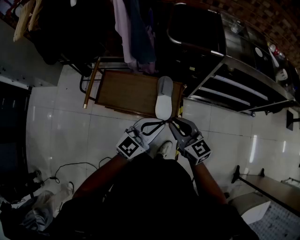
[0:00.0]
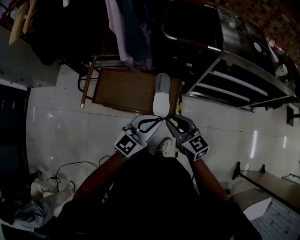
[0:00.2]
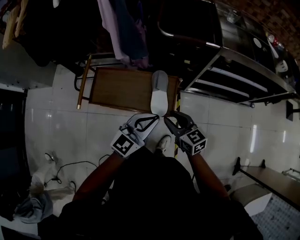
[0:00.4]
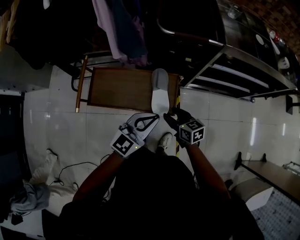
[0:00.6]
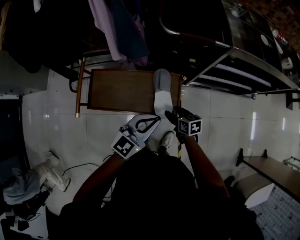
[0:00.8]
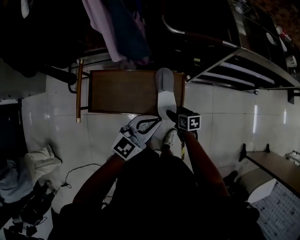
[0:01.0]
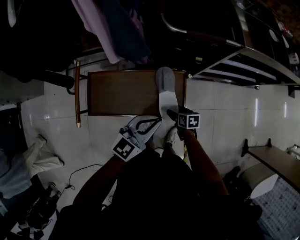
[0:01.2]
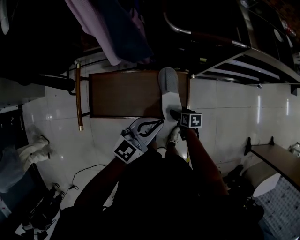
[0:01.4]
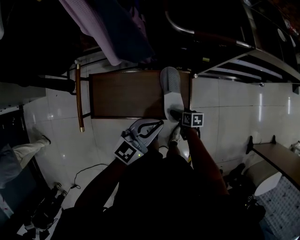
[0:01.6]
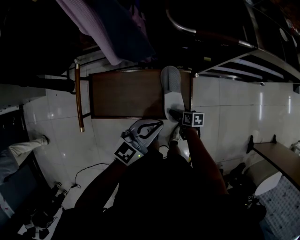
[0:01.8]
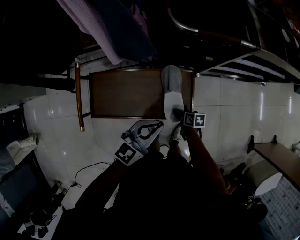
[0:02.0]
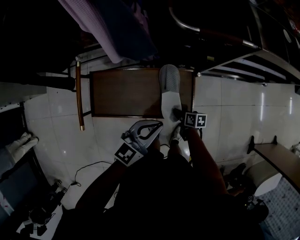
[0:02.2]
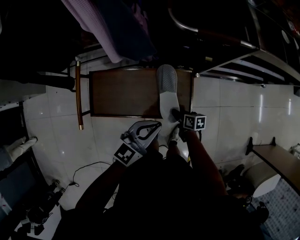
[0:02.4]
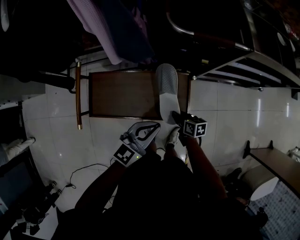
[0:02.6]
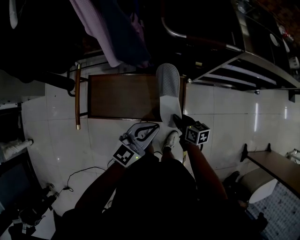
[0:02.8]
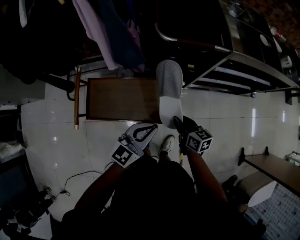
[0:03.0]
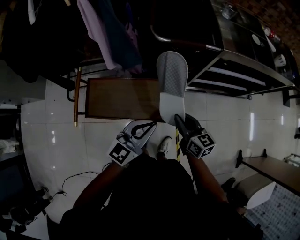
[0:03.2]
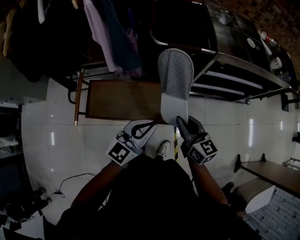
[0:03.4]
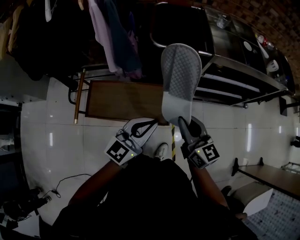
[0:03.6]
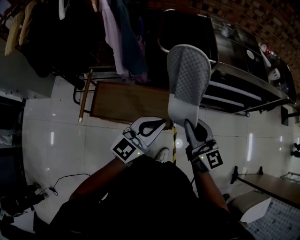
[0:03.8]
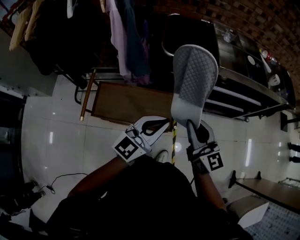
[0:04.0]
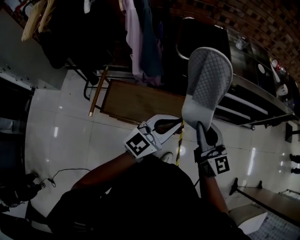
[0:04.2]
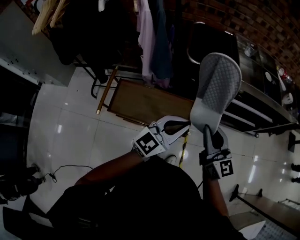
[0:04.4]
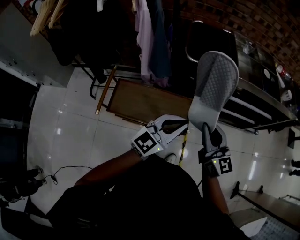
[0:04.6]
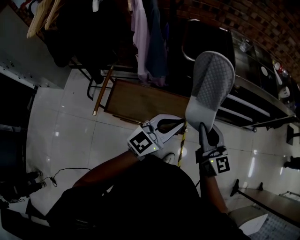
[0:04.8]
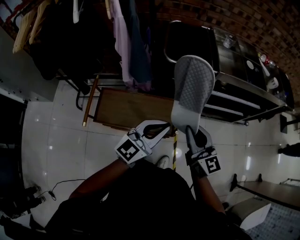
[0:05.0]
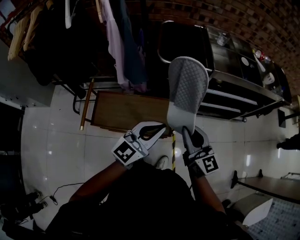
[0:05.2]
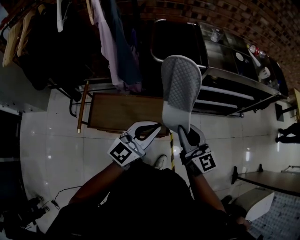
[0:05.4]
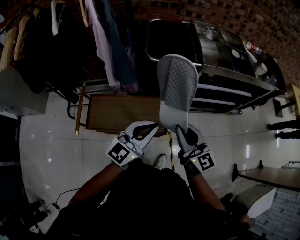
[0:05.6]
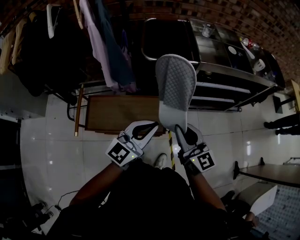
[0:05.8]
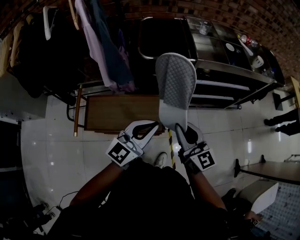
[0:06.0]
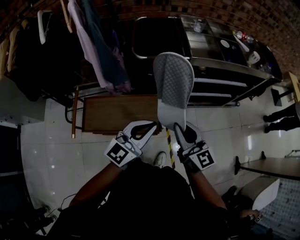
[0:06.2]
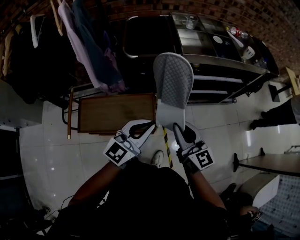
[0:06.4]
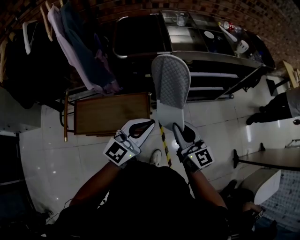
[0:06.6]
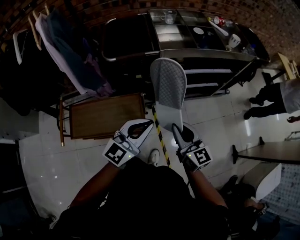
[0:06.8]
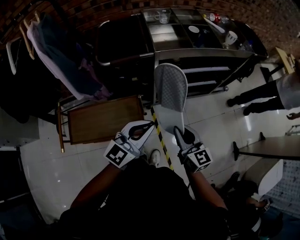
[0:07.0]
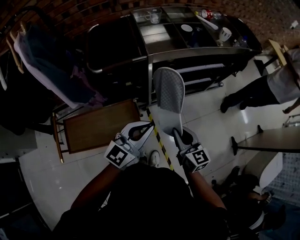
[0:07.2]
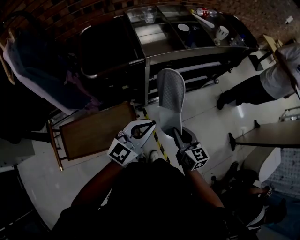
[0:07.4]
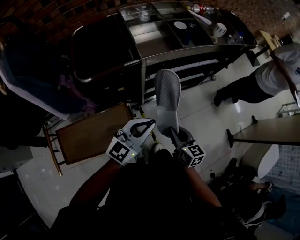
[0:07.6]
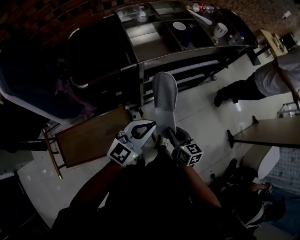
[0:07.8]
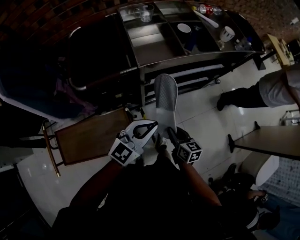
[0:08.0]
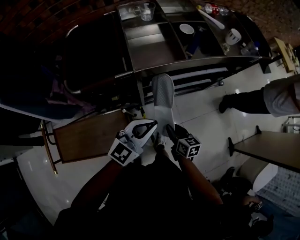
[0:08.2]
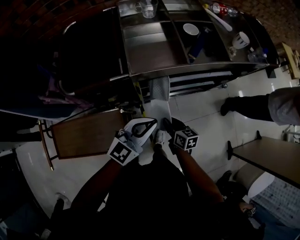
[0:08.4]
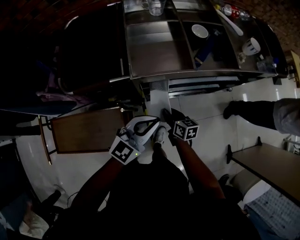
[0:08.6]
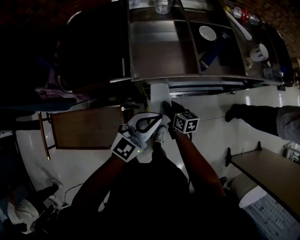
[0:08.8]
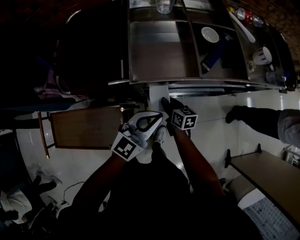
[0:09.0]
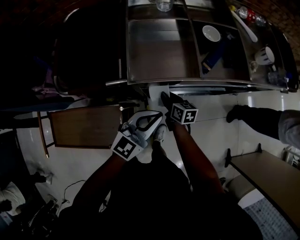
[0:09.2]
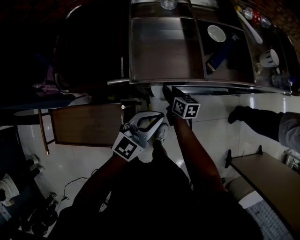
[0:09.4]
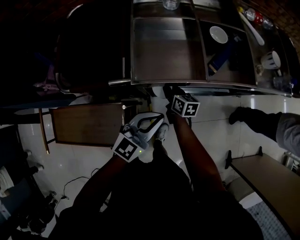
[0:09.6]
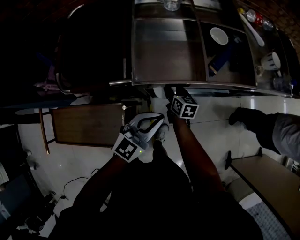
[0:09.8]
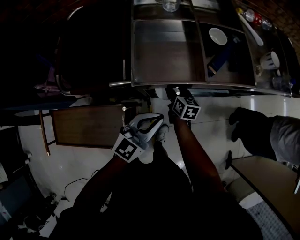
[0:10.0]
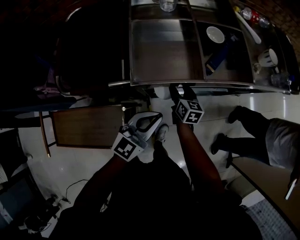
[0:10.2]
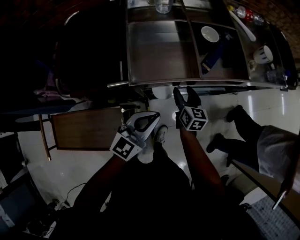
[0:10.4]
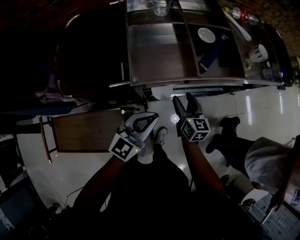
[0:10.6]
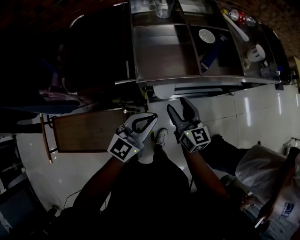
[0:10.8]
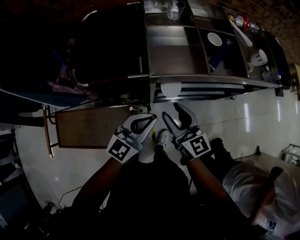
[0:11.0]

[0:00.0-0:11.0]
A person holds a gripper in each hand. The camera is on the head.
0:00.0 to 0:01.6: The right gripper goes about 40 cm downward, points its fingers some 40 degrees further downward, and opens its fingers; the left gripper is displaced forward, downward and to the left by about 20 cm.
0:01.6 to 0:03.2: The left gripper is displaced upward by about 10 cm. The right gripper shifts roughly 30 cm upward, tilts its fingers approximately 30 degrees upward, and closes its fingers.
0:03.2 to 0:04.8: The right gripper heads upward, covering some 20 cm, and rotates approximately 30 degrees; the left gripper heads upward, covering about 10 cm.
0:04.8 to 0:06.2: The right gripper moves to the right, approximately 5 cm.
0:06.2 to 0:07.8: The left gripper moves forward, to the right and downward, some 20 cm. The right gripper moves downward, to the right and forward, approximately 30 cm, and changes its angle by approximately 30 degrees.
0:07.8 to 0:09.4: The right gripper shifts some 35 cm forward and downward, and turns by about 20 degrees. The left gripper shifts roughly 20 cm forward and downward.
0:09.4 to 0:11.0: The right gripper moves upward and backward, roughly 25 cm, rotates some 40 degrees, and opens up; the left gripper shifts approximately 10 cm to the left and backward.

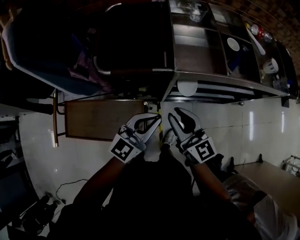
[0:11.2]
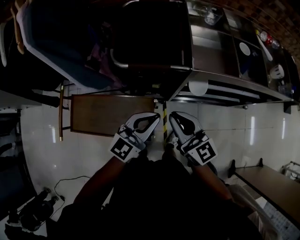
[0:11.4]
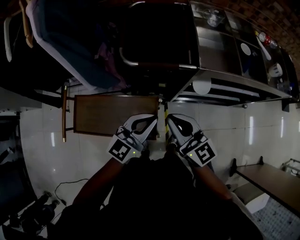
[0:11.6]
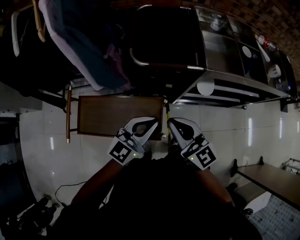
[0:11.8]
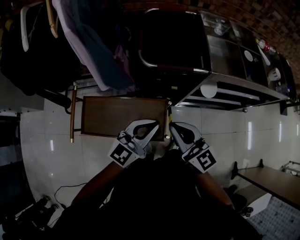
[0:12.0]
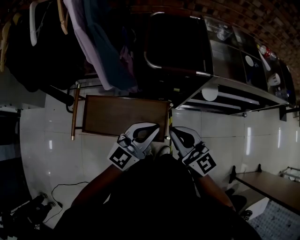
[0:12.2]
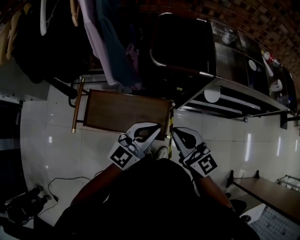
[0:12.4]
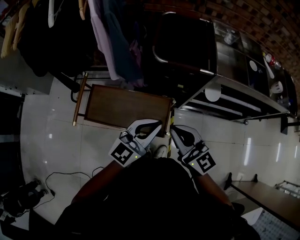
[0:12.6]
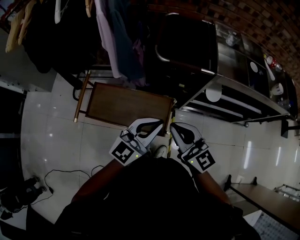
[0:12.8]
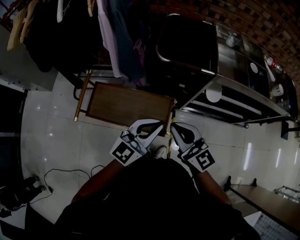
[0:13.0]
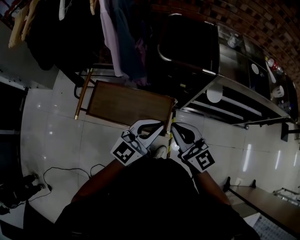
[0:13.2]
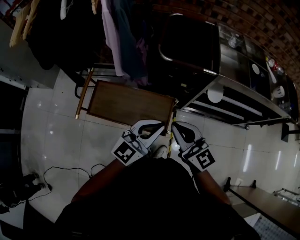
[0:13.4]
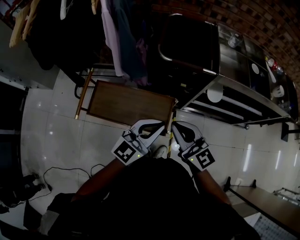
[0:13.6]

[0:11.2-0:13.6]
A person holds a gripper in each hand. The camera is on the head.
0:11.2 to 0:12.4: The two grippers go approximately 20 cm to the left and backward.
0:12.4 to 0:13.6: The grippers stay close to where they were, moving slightly.

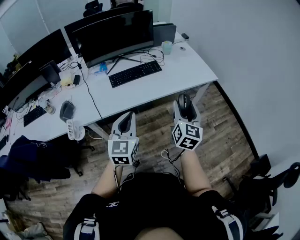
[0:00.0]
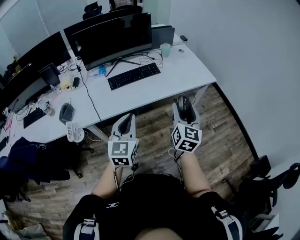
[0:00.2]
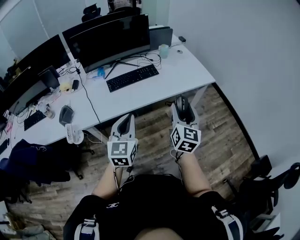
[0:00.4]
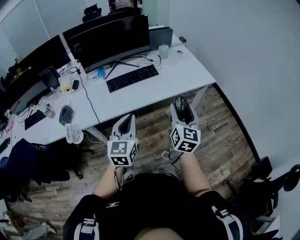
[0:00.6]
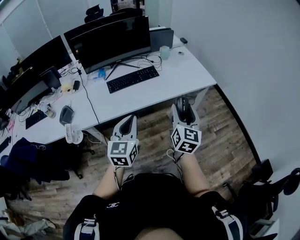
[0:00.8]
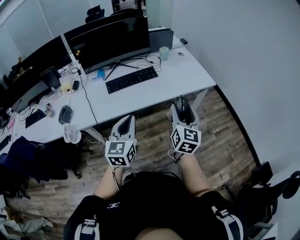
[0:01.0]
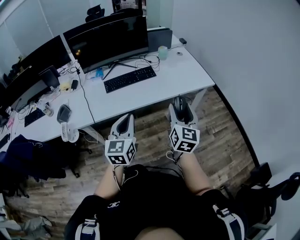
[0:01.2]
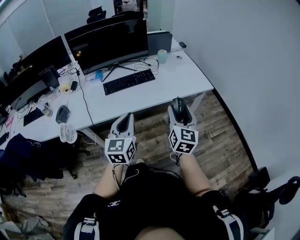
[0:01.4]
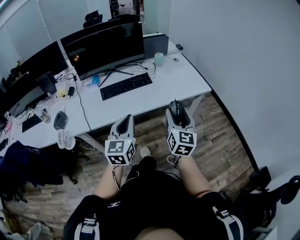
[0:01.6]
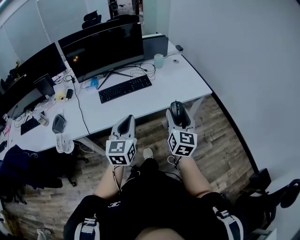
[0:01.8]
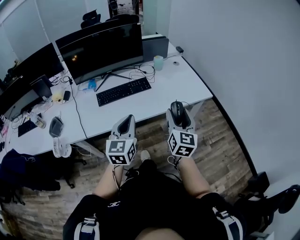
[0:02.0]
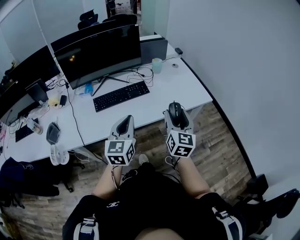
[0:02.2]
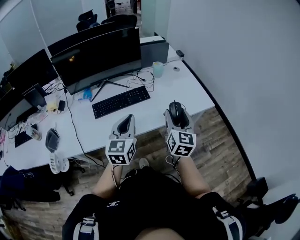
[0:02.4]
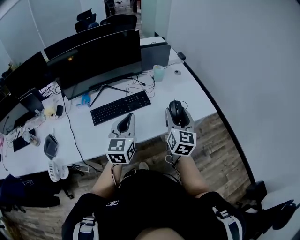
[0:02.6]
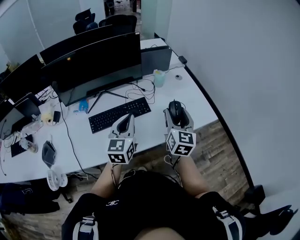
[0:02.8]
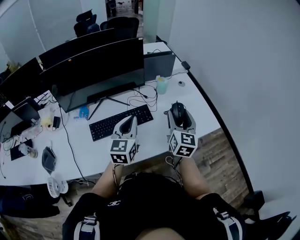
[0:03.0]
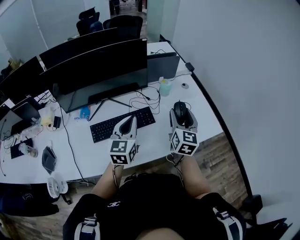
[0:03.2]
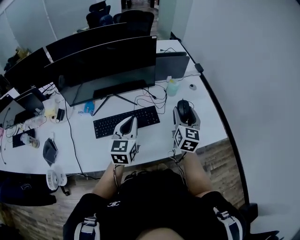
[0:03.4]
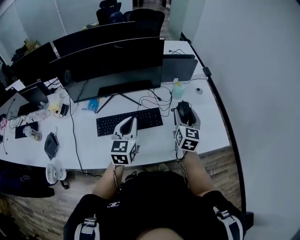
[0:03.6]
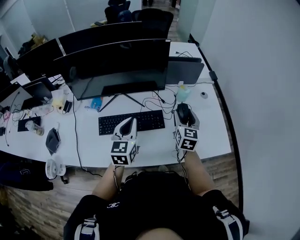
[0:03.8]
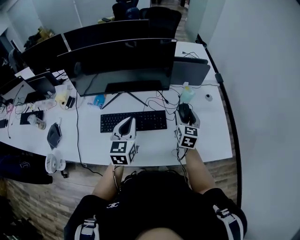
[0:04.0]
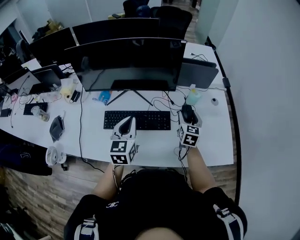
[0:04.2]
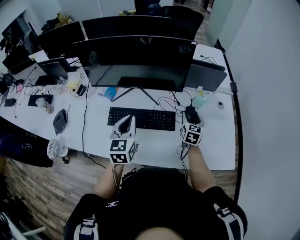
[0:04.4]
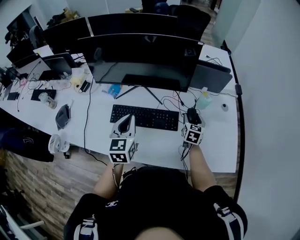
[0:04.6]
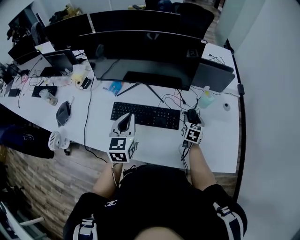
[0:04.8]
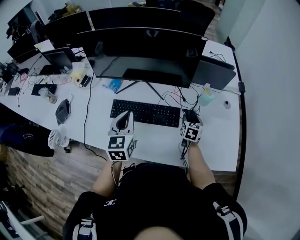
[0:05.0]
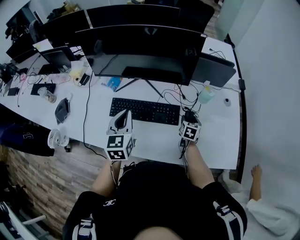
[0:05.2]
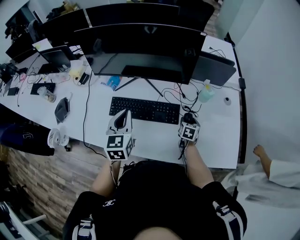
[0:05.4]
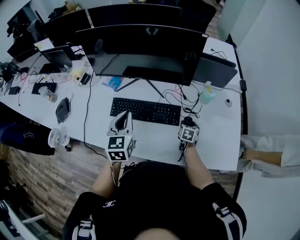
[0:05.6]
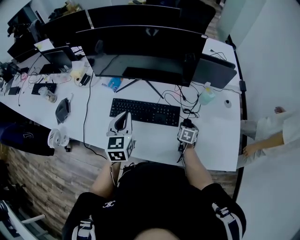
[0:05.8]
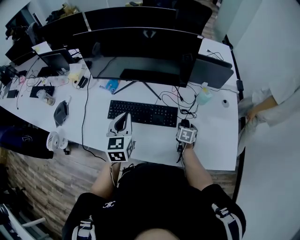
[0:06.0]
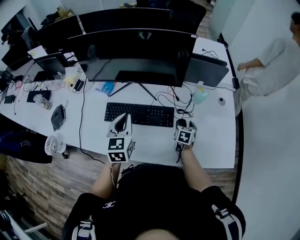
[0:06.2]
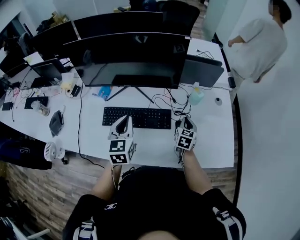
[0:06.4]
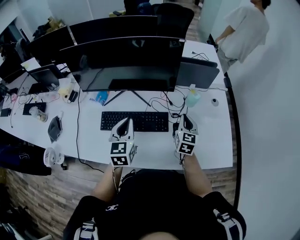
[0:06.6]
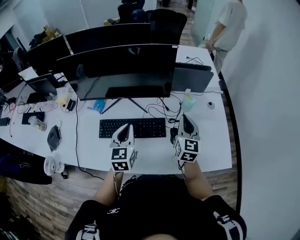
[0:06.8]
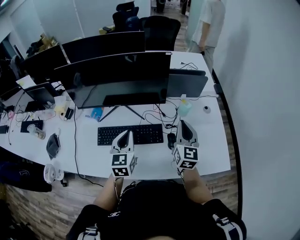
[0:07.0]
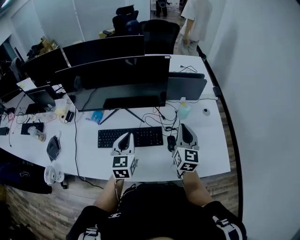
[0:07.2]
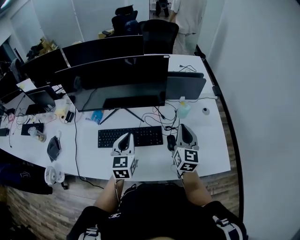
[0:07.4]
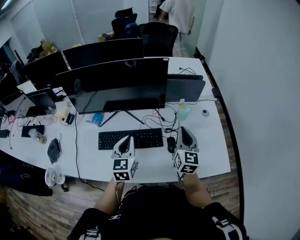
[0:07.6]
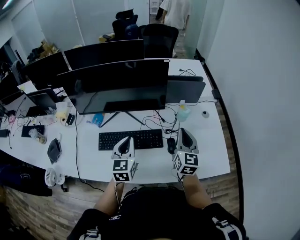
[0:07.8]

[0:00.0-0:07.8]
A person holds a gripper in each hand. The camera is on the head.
0:00.0 to 0:01.6: The right gripper moves to the right, about 10 cm. Meanwhile the left gripper travels to the right and forward by about 10 cm.
0:01.6 to 0:03.2: The pair of grippers is taken forward, some 40 cm.
0:03.2 to 0:04.6: The left gripper goes roughly 10 cm to the left, and changes its angle by some 30 degrees. Meanwhile the right gripper travels forward and downward by roughly 25 cm, and changes its angle by some 30 degrees.
0:04.6 to 0:06.2: The right gripper goes some 10 cm downward.
0:06.2 to 0:07.8: The left gripper is displaced to the right by approximately 5 cm. The right gripper shifts approximately 25 cm upward, tips its fingers upward by roughly 40 degrees, and closes its fingers.

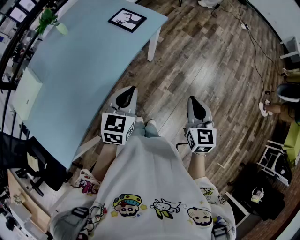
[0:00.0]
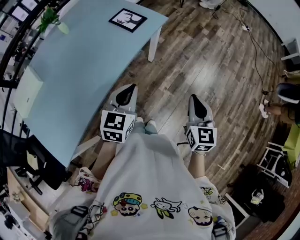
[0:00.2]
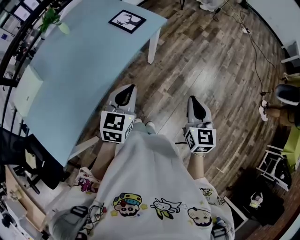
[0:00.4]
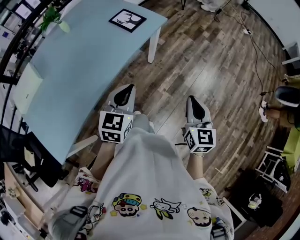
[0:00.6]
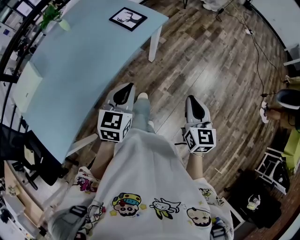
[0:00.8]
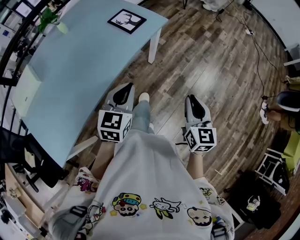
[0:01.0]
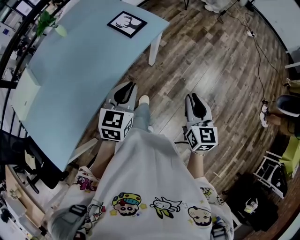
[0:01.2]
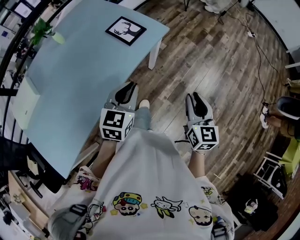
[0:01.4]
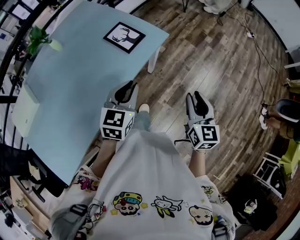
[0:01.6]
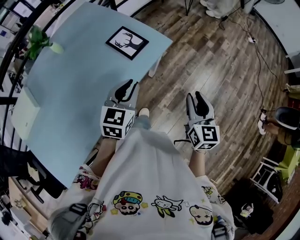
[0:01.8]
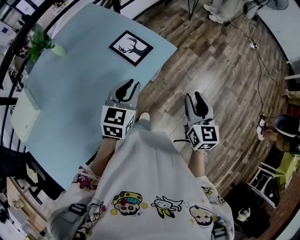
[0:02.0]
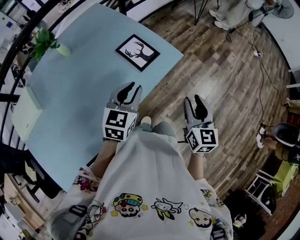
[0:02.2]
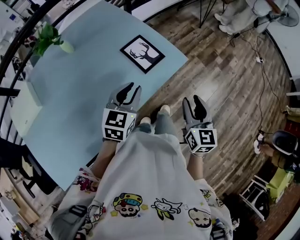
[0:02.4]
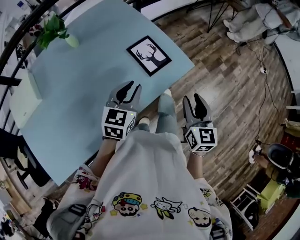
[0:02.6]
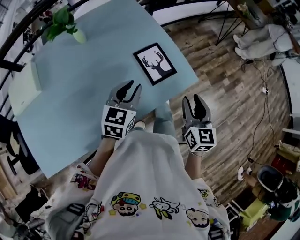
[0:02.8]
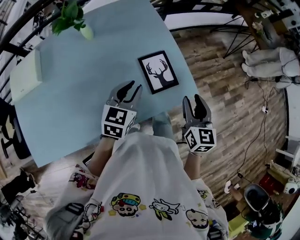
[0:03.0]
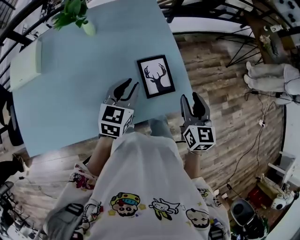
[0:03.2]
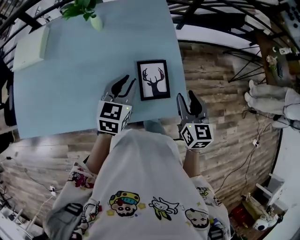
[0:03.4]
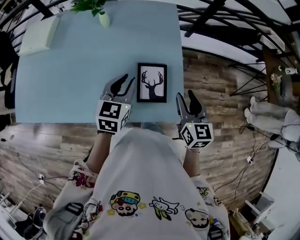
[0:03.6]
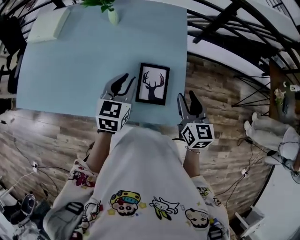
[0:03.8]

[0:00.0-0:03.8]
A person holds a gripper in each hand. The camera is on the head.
0:00.0 to 0:01.2: The grippers both shift forward by some 5 cm.
0:01.2 to 0:02.6: The two grippers go about 30 cm forward and to the left.
0:02.6 to 0:03.8: The left gripper ends up some 15 cm from where it was, and rotates about 50 degrees; the right gripper ends up roughly 25 cm from where it was, and rotates some 50 degrees.
